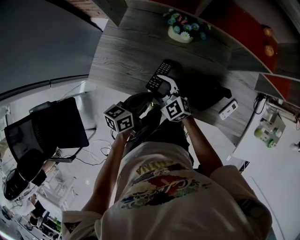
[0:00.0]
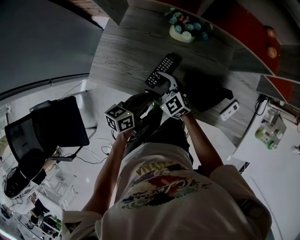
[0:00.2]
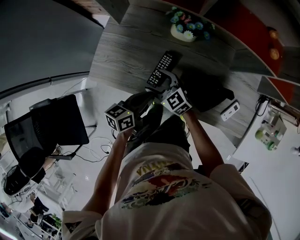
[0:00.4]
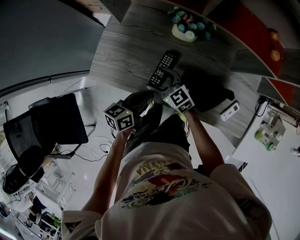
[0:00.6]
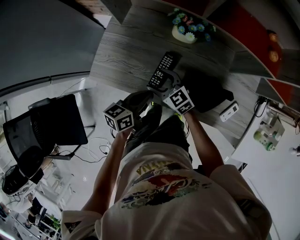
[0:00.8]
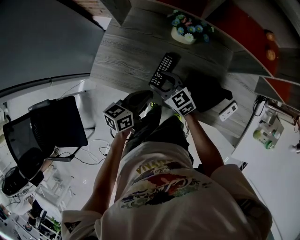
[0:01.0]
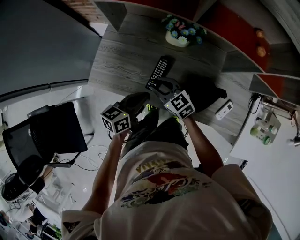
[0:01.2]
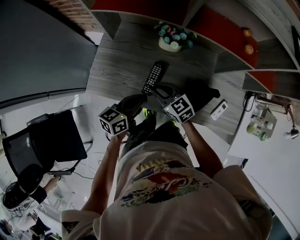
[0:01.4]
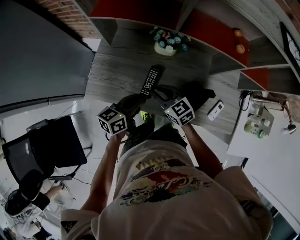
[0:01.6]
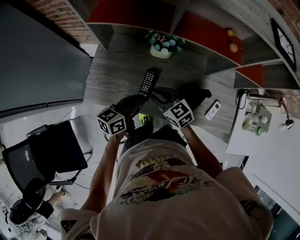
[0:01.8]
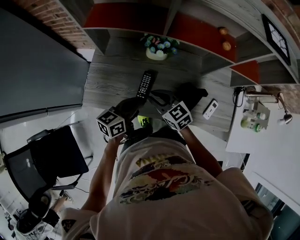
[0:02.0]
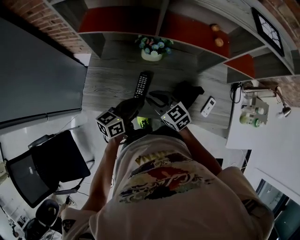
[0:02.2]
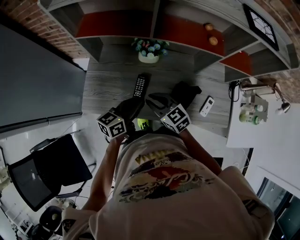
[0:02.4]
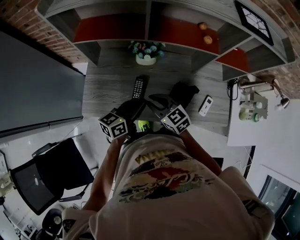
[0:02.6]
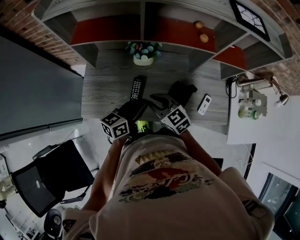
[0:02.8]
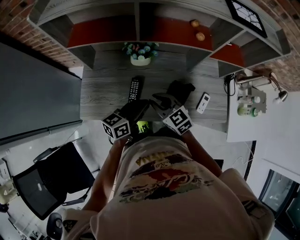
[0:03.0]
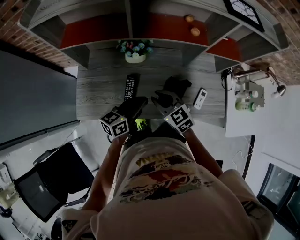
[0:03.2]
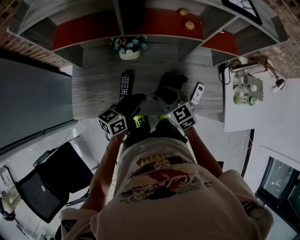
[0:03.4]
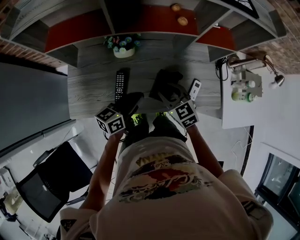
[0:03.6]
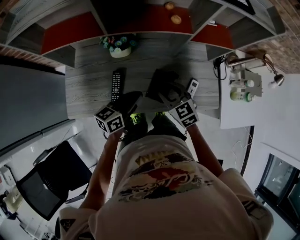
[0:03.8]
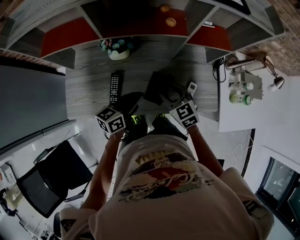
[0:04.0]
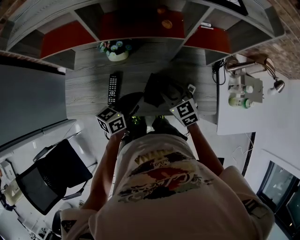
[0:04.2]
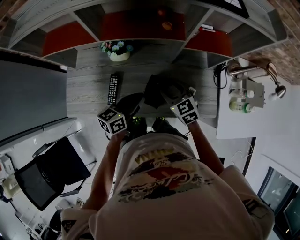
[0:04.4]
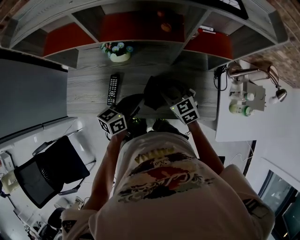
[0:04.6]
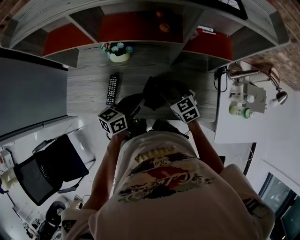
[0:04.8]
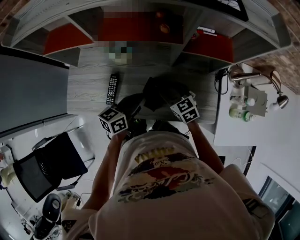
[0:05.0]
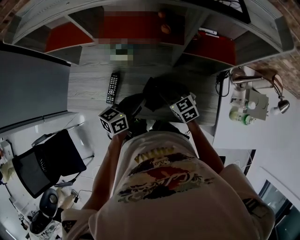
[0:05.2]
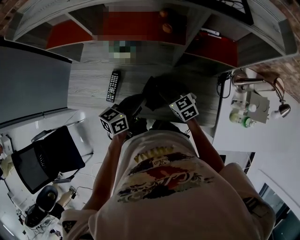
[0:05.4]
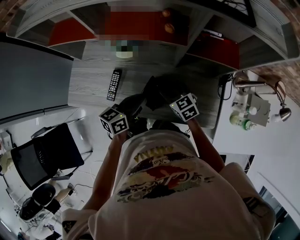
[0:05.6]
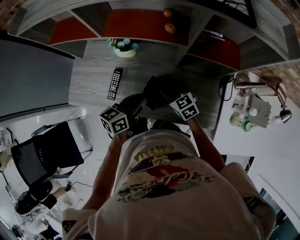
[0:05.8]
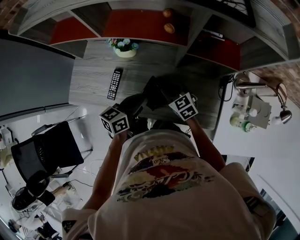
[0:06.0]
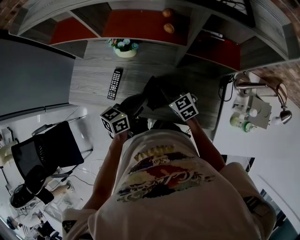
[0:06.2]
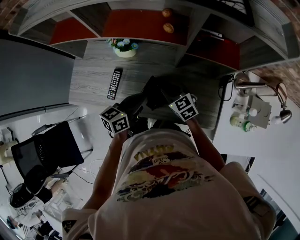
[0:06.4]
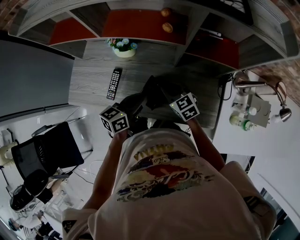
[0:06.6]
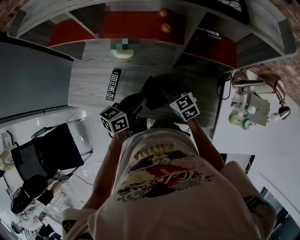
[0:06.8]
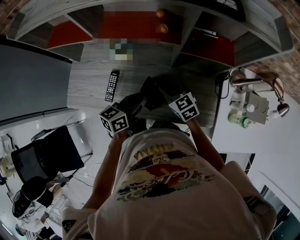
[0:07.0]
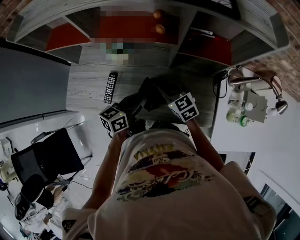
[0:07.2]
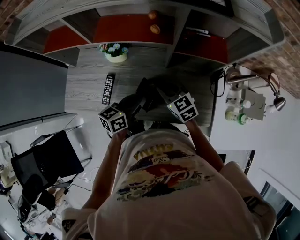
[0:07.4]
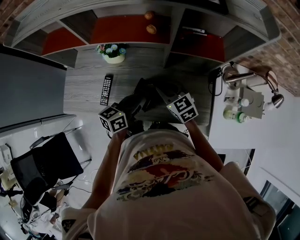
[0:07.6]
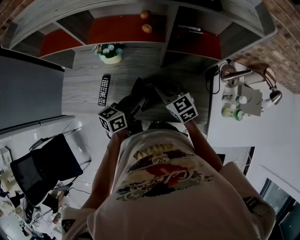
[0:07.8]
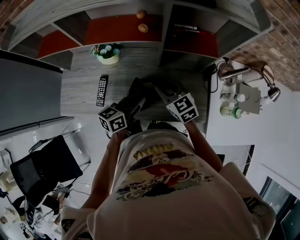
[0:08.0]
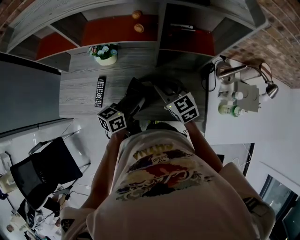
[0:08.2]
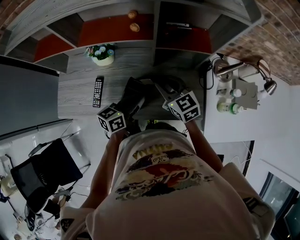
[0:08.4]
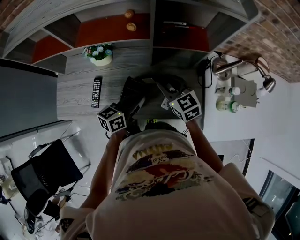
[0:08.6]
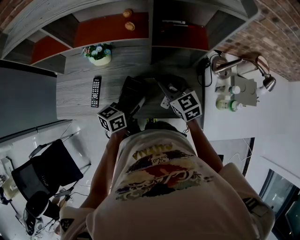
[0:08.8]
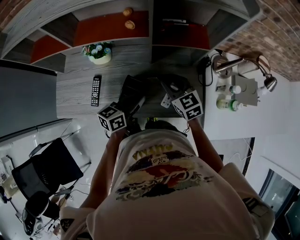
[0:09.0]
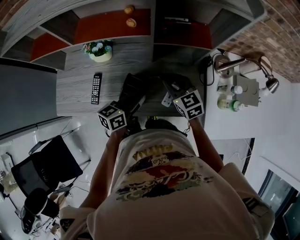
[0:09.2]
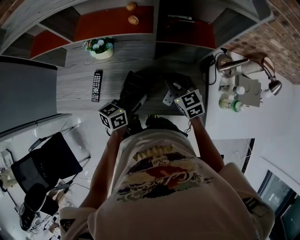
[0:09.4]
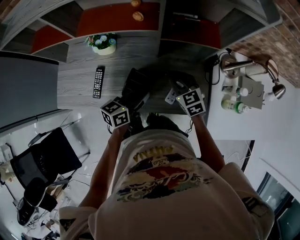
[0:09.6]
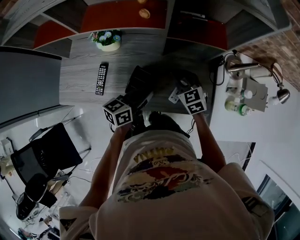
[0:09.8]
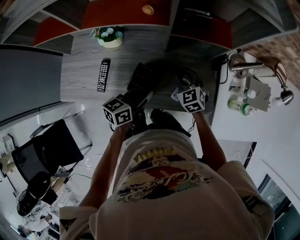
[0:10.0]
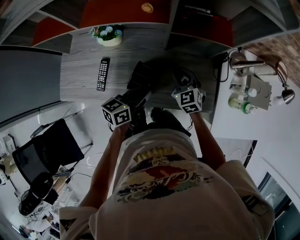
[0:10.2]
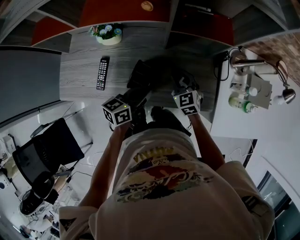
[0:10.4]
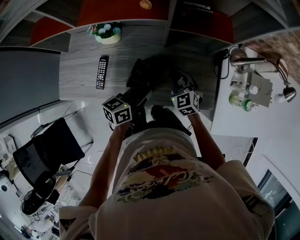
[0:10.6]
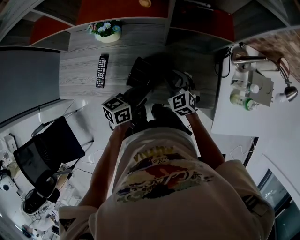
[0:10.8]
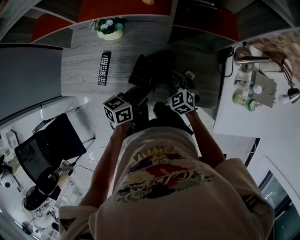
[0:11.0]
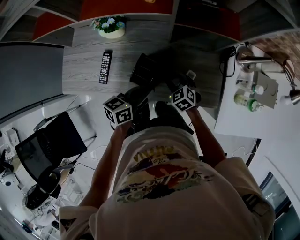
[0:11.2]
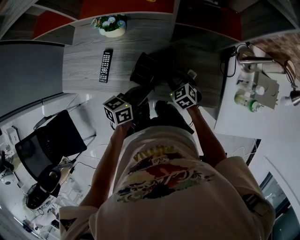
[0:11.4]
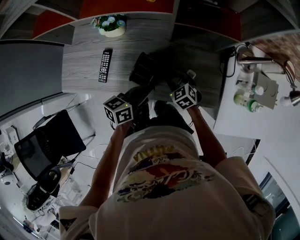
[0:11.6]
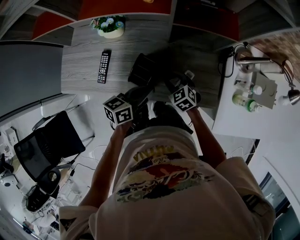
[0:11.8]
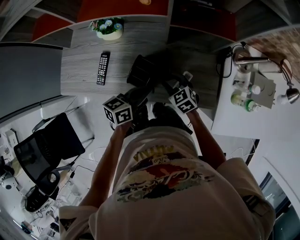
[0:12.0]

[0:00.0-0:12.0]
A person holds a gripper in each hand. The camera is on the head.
0:00.0 to 0:01.6: Both grippers travel together upward, roughly 5 cm. The right gripper turns by roughly 20 degrees, and closes up.
0:01.6 to 0:03.0: The left gripper heads to the right, covering about 10 cm. Meanwhile the right gripper is displaced to the right and upward by about 10 cm.
0:03.0 to 0:04.4: The right gripper shifts approximately 20 cm to the right, and opens. Meanwhile the left gripper shifts roughly 10 cm to the right.
0:04.4 to 0:06.0: The right gripper changes place by about 5 cm, and closes its fingers.
0:06.0 to 0:07.6: The right gripper heads upward, covering some 5 cm.
0:07.6 to 0:09.0: The right gripper moves to the right, roughly 10 cm; the left gripper moves to the right, about 5 cm.
0:09.0 to 0:10.4: The right gripper travels downward by approximately 10 cm.
0:10.4 to 0:12.0: The right gripper travels backward by roughly 5 cm.

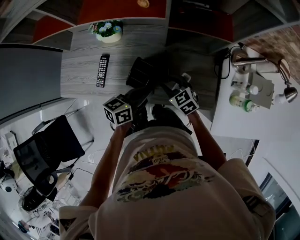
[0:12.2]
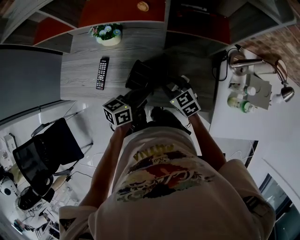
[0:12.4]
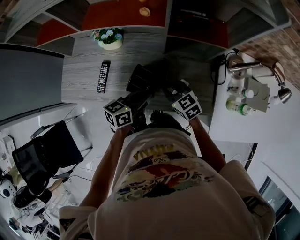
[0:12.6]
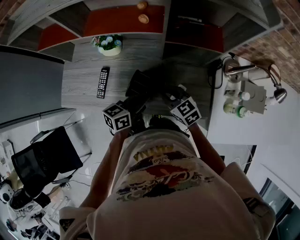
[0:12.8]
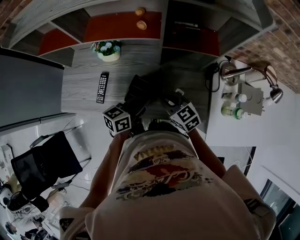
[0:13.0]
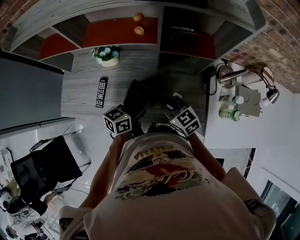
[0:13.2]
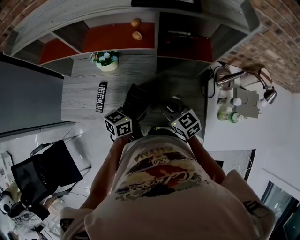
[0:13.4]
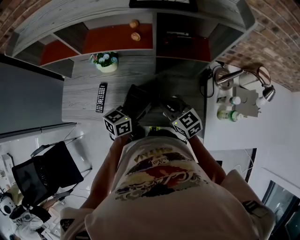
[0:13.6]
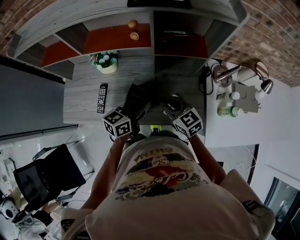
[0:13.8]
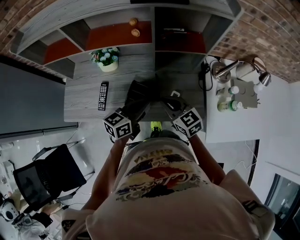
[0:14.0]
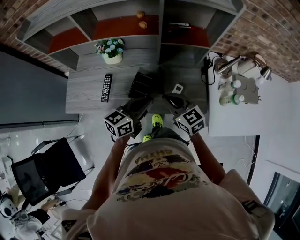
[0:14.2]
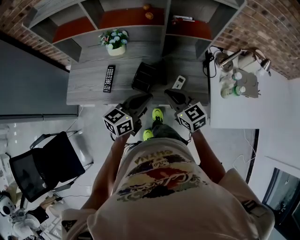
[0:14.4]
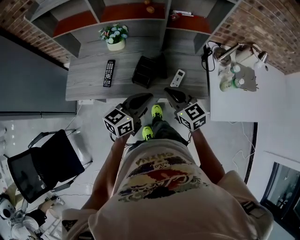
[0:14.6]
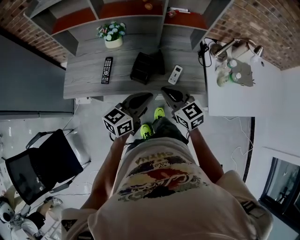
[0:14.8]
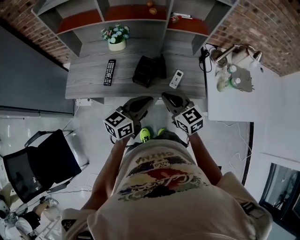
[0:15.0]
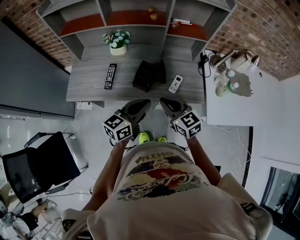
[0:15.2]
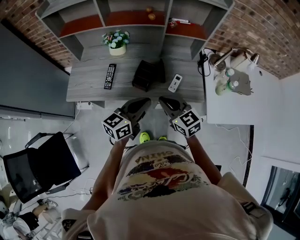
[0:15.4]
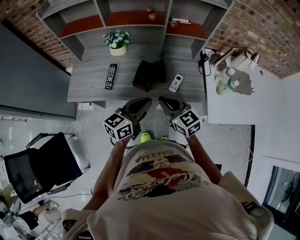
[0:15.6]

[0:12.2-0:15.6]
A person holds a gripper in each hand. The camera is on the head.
0:12.2 to 0:13.8: The left gripper shifts approximately 5 cm upward, while the right gripper goes roughly 15 cm upward, and closes.
0:13.8 to 0:15.6: Both grippers travel together backward, approximately 20 cm.

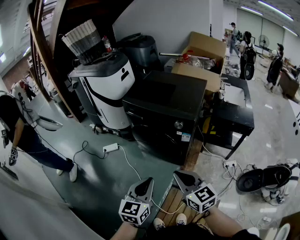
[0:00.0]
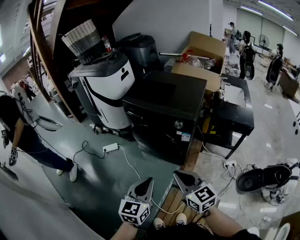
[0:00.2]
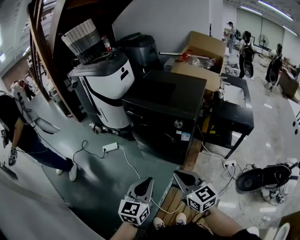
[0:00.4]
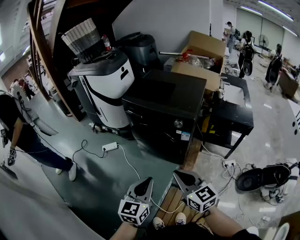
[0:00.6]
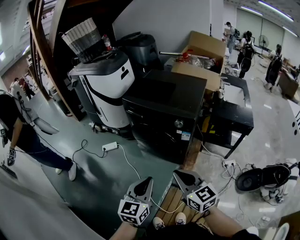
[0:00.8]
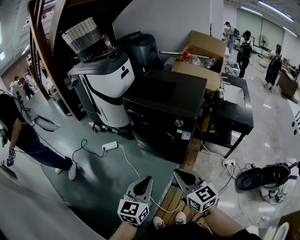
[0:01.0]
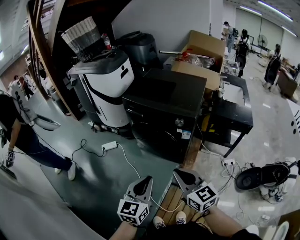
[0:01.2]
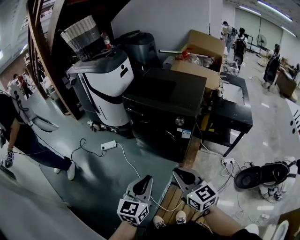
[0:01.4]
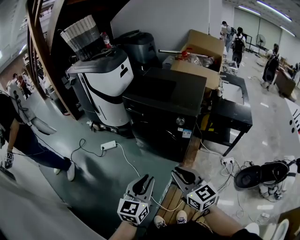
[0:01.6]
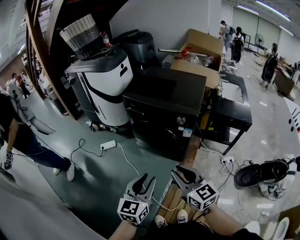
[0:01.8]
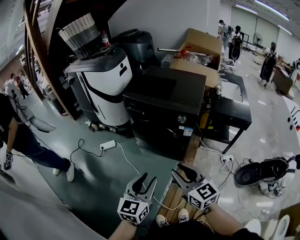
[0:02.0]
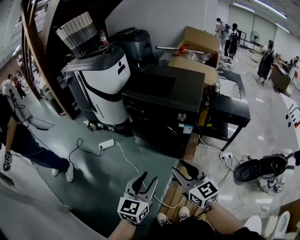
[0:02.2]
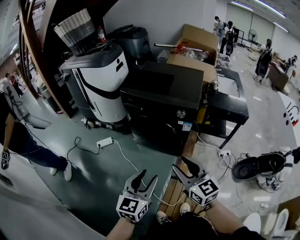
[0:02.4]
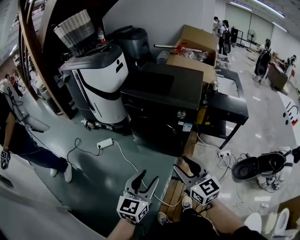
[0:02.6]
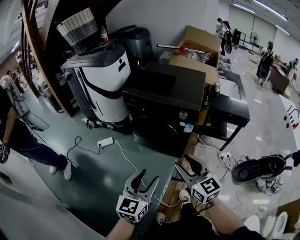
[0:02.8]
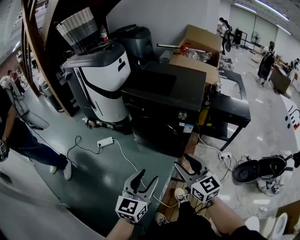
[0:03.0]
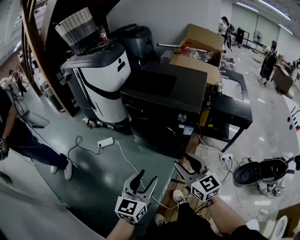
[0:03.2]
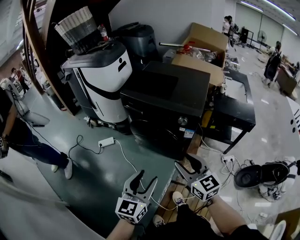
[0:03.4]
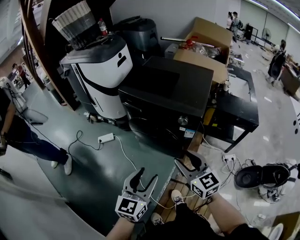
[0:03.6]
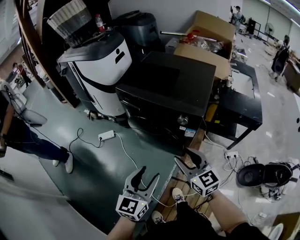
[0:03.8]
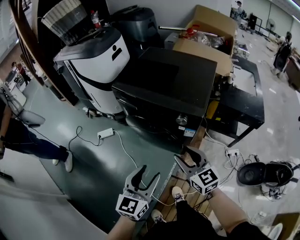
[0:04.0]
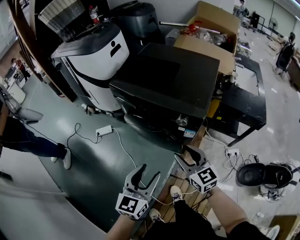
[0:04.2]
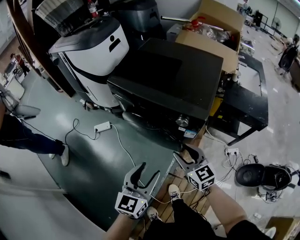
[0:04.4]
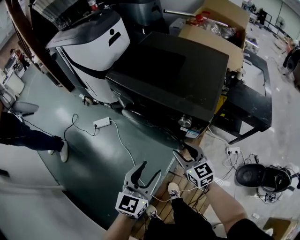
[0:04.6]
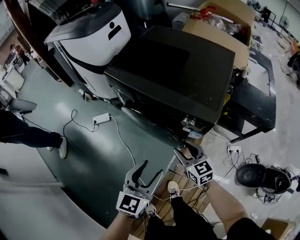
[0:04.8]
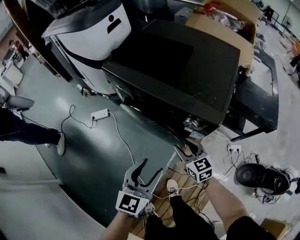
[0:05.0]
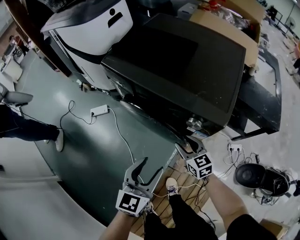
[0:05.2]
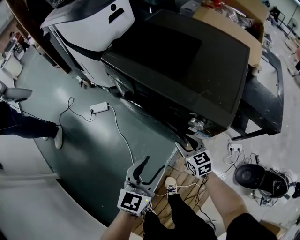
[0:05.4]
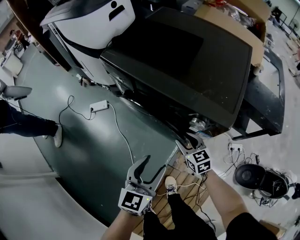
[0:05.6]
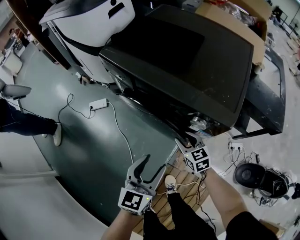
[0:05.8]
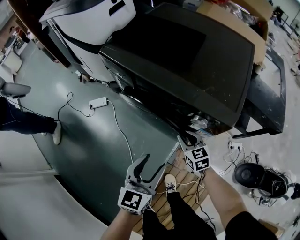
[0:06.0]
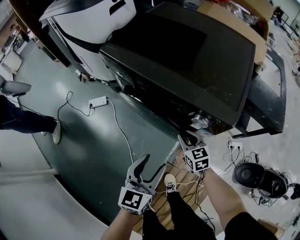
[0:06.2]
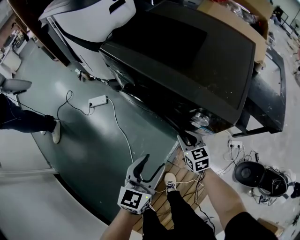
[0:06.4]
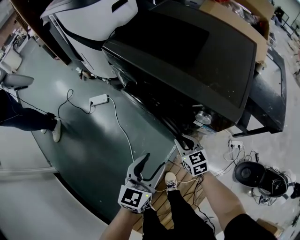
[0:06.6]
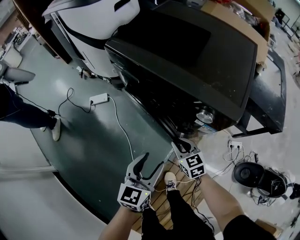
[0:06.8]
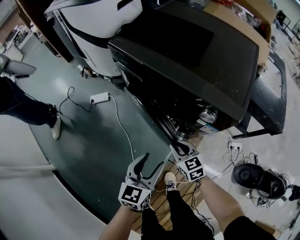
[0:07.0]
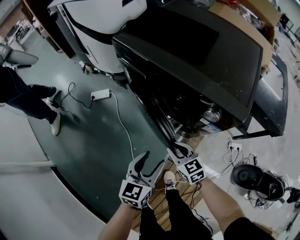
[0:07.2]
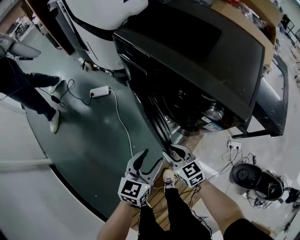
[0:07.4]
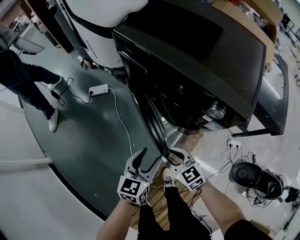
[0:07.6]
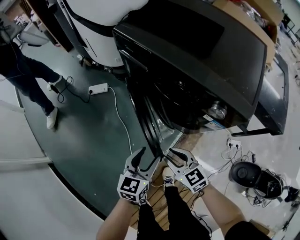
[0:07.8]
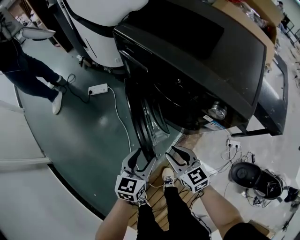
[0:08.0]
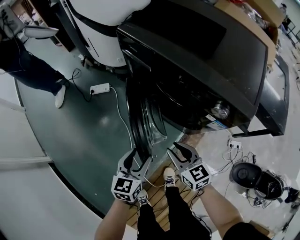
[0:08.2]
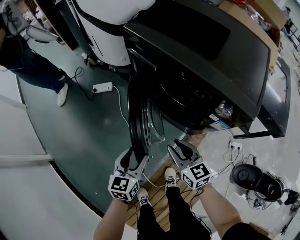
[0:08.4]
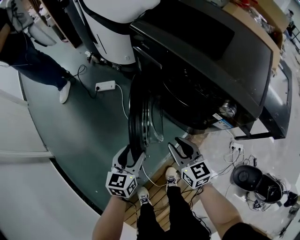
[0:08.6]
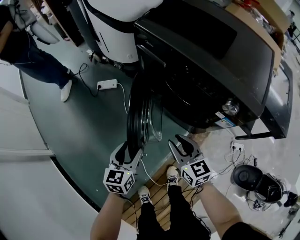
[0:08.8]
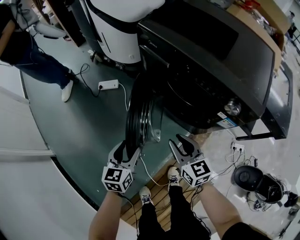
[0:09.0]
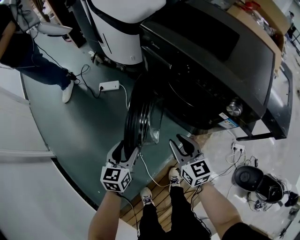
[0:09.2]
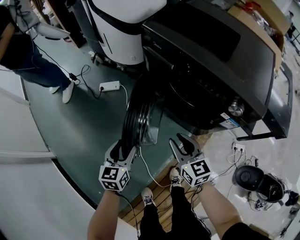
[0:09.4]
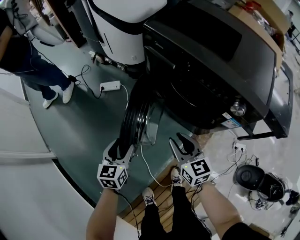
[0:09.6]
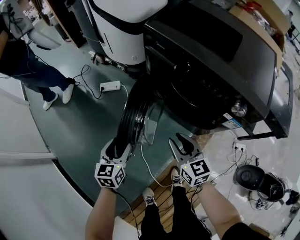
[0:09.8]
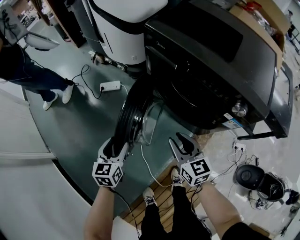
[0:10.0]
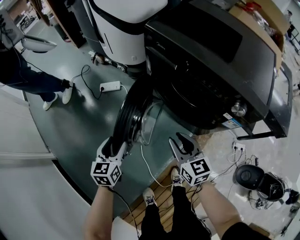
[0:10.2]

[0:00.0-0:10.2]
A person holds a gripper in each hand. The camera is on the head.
0:00.0 to 0:01.4: The grippers stay close to where they were, moving slightly.
0:01.4 to 0:03.0: The left gripper opens up; the right gripper opens its fingers.
0:03.0 to 0:04.4: The right gripper travels forward, downward and to the right by approximately 30 cm. The left gripper heads forward and to the right, covering some 20 cm.
0:04.4 to 0:05.8: The right gripper travels downward and forward by roughly 25 cm. Meanwhile the left gripper goes approximately 15 cm downward and forward.
0:05.8 to 0:07.2: The right gripper travels to the left and backward by approximately 10 cm, and closes its fingers; the left gripper is displaced downward by about 5 cm.
0:07.2 to 0:08.8: The left gripper goes approximately 15 cm to the left. Meanwhile the right gripper goes approximately 10 cm upward and to the left.
0:08.8 to 0:10.2: The left gripper goes approximately 10 cm to the left.
